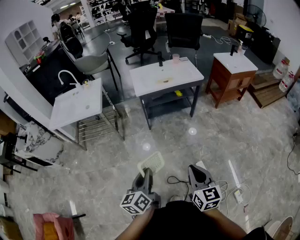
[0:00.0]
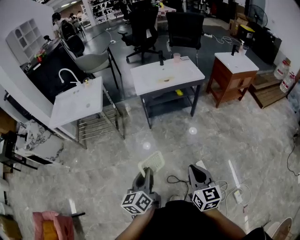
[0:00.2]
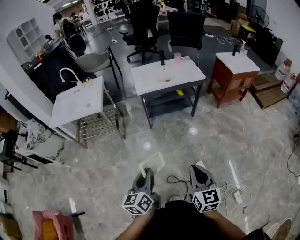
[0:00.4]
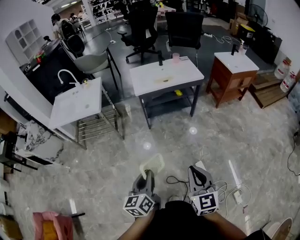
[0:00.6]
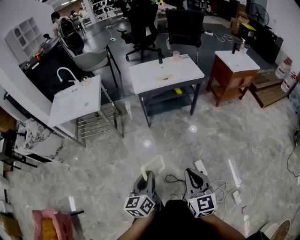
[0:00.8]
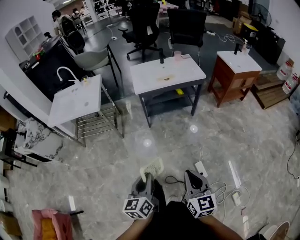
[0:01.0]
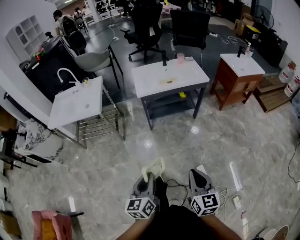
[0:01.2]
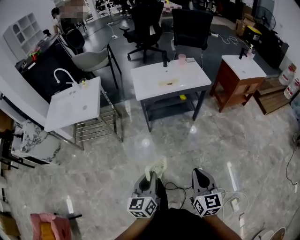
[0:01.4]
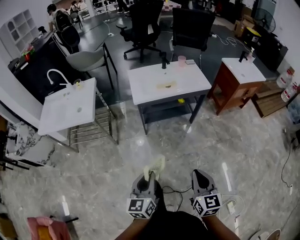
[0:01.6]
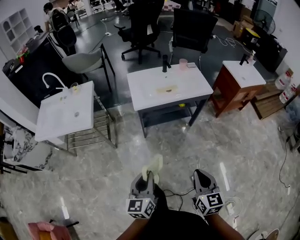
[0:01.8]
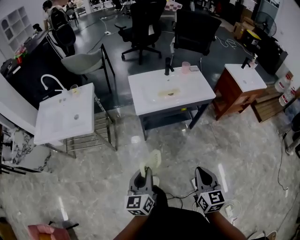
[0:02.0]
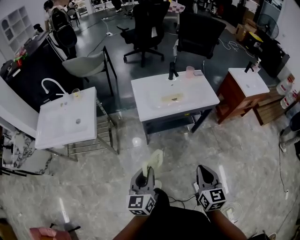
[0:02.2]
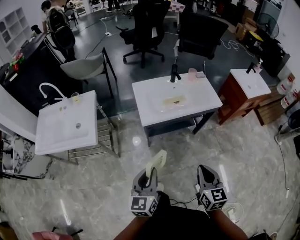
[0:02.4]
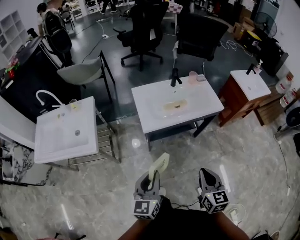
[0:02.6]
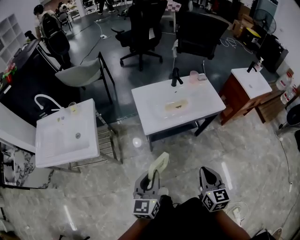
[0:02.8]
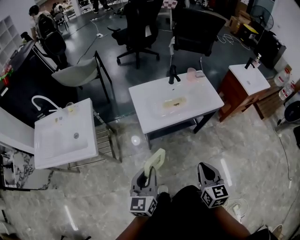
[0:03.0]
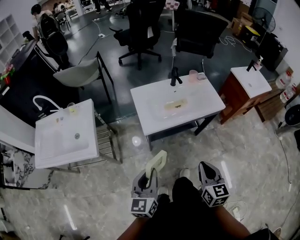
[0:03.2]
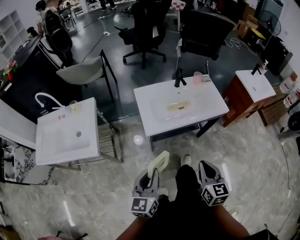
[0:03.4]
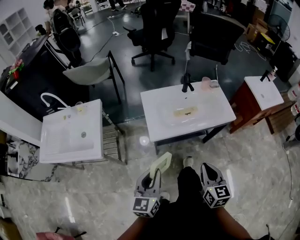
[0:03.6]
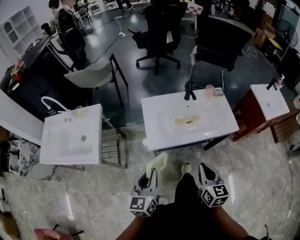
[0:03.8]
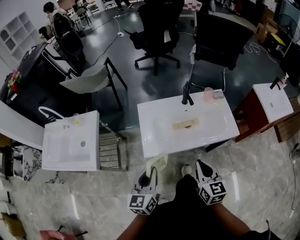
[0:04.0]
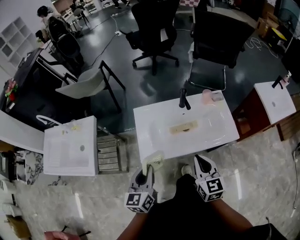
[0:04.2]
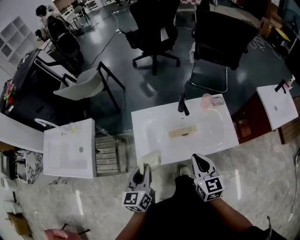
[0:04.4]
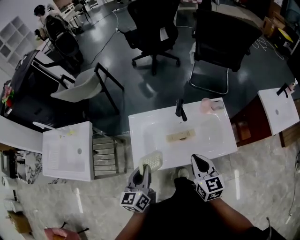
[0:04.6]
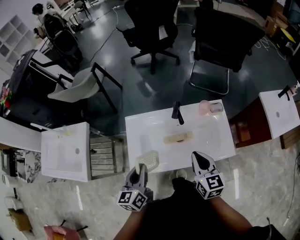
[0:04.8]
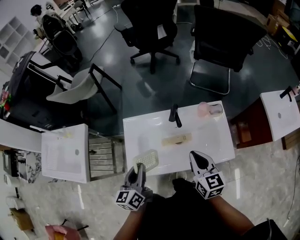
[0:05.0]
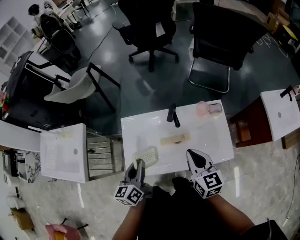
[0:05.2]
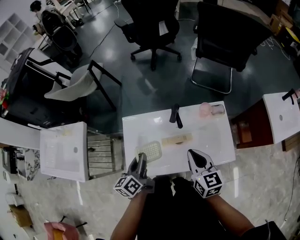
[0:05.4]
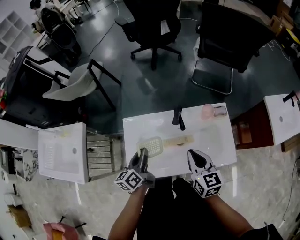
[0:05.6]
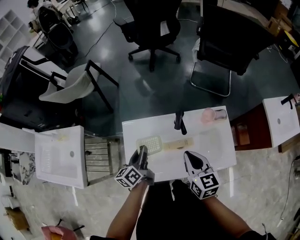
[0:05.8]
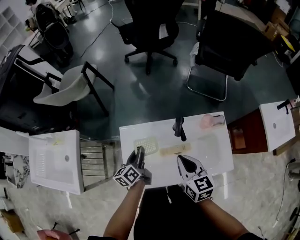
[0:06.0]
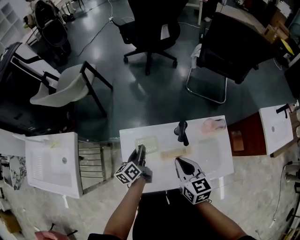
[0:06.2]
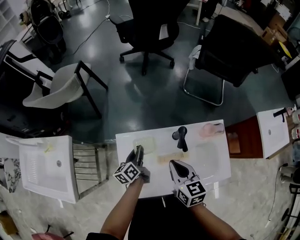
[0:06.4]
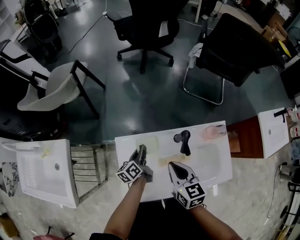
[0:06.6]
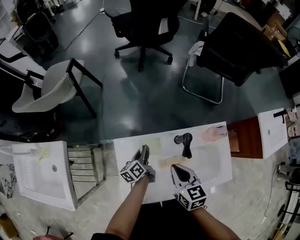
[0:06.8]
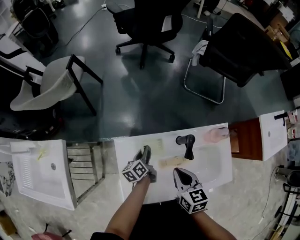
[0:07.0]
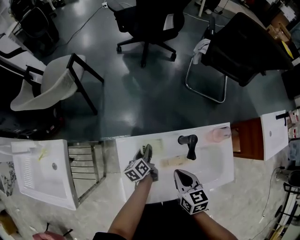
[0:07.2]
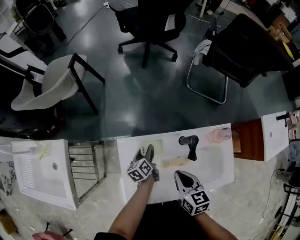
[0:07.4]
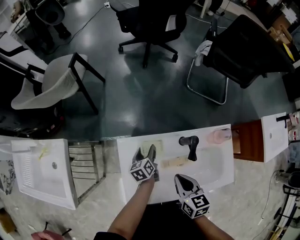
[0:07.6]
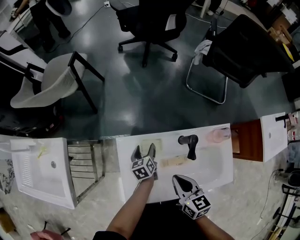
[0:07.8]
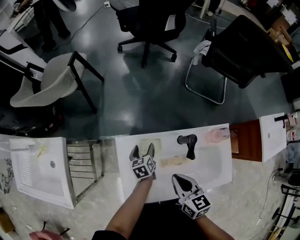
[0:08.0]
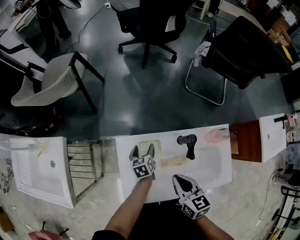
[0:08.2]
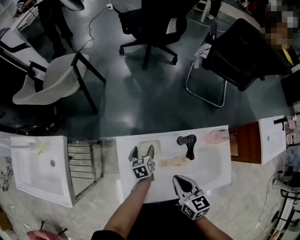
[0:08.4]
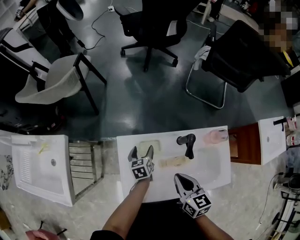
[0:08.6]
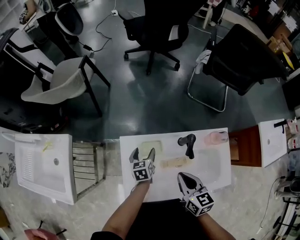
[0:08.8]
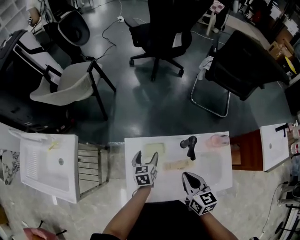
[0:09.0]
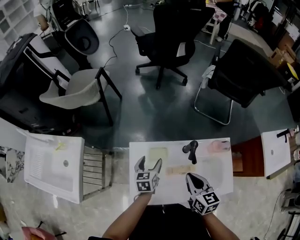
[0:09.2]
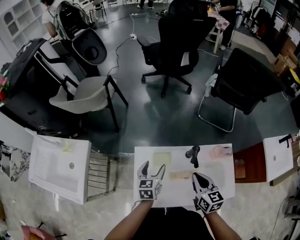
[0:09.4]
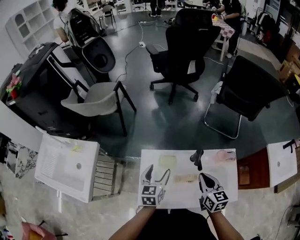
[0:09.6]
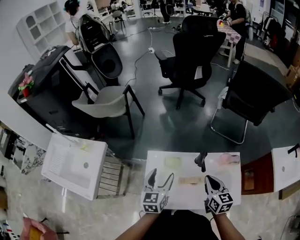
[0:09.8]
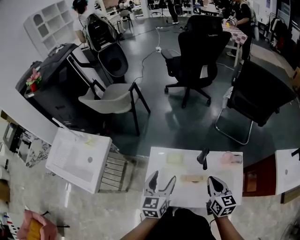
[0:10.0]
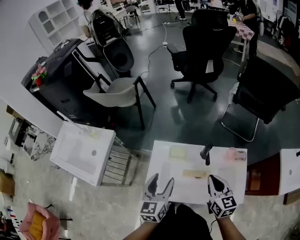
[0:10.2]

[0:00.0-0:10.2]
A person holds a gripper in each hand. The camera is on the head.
0:00.0 to 0:01.4: Both grippers move forward, roughly 10 cm.
0:01.4 to 0:03.0: The two grippers go about 35 cm forward.
0:03.0 to 0:04.4: Both grippers travel together forward, about 30 cm.
0:04.4 to 0:05.8: The right gripper travels forward by some 15 cm. The left gripper travels forward and downward by roughly 25 cm, and swivels about 30 degrees.
0:05.8 to 0:07.2: The left gripper moves downward and forward, roughly 20 cm. Meanwhile the right gripper heads downward, to the left and forward, covering about 15 cm.
0:07.2 to 0:08.8: The left gripper rotates about 30 degrees, and opens up; the right gripper ends up approximately 5 cm from where it was.
0:08.8 to 0:10.2: The right gripper travels upward and to the right by approximately 10 cm, while the left gripper moves upward and backward, approximately 35 cm, and changes its angle by approximately 30 degrees.

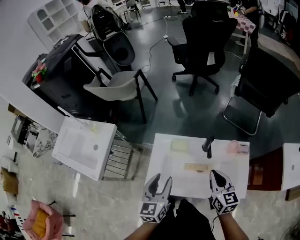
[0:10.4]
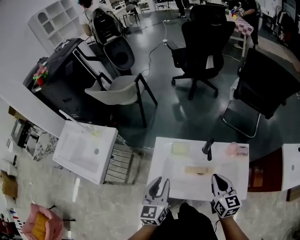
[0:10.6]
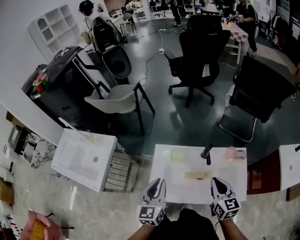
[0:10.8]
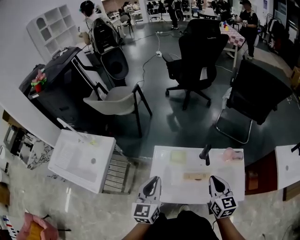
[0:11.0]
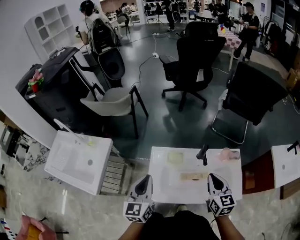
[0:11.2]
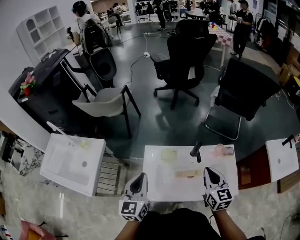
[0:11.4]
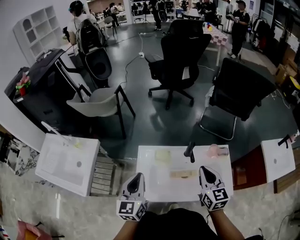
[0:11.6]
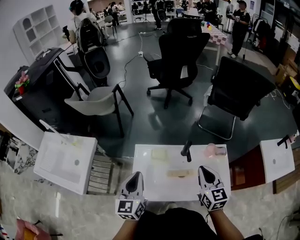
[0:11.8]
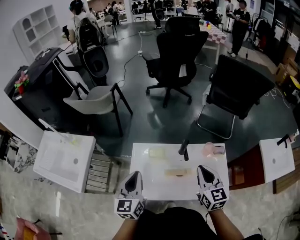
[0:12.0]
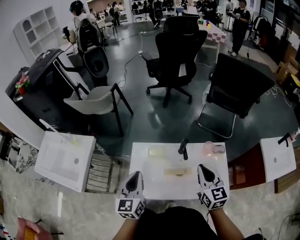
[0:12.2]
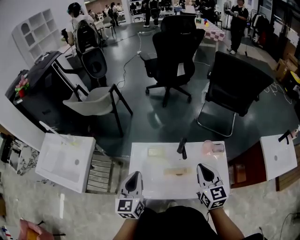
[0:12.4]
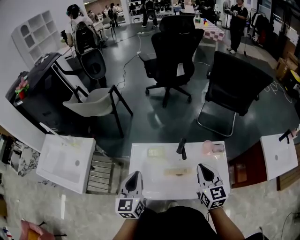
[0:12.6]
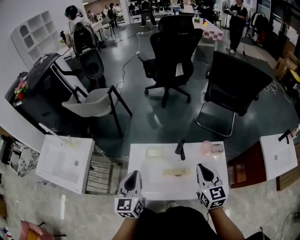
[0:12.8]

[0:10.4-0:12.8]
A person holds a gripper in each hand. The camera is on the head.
0:10.4 to 0:11.6: The left gripper goes about 10 cm to the left and upward, and closes its fingers; the right gripper moves upward, roughly 5 cm.
0:11.6 to 0:12.8: The grippers both shift to the right by about 5 cm.

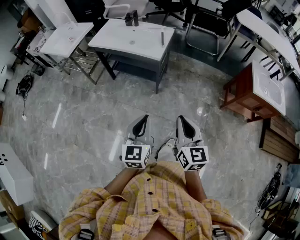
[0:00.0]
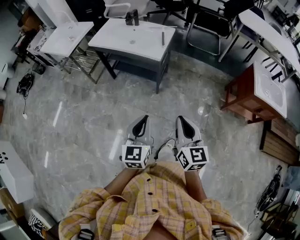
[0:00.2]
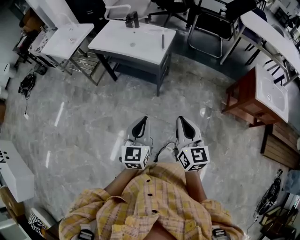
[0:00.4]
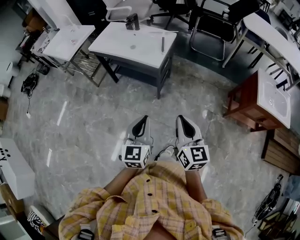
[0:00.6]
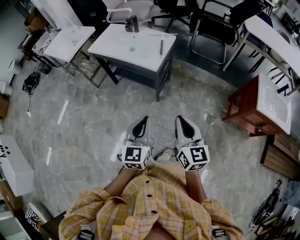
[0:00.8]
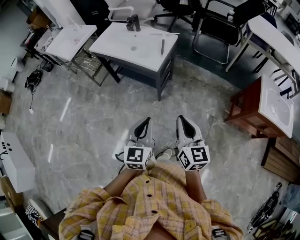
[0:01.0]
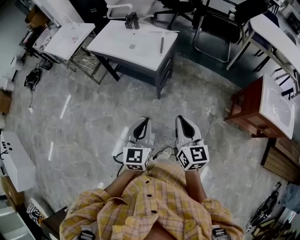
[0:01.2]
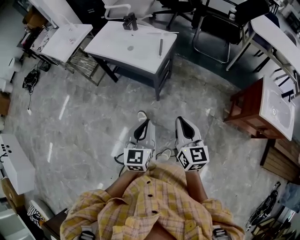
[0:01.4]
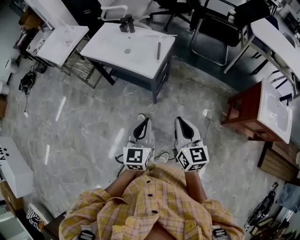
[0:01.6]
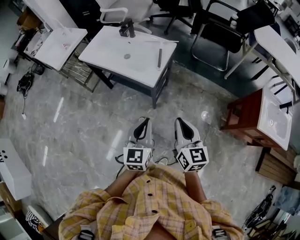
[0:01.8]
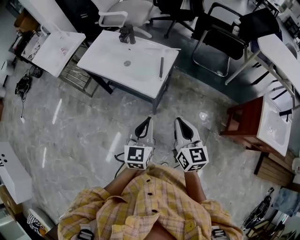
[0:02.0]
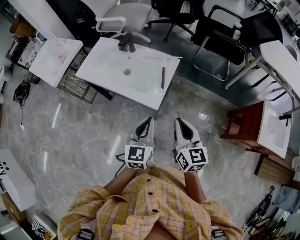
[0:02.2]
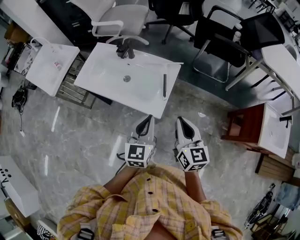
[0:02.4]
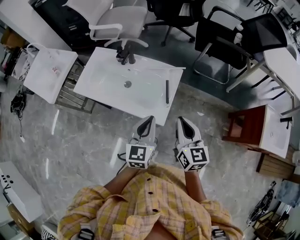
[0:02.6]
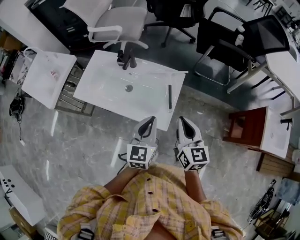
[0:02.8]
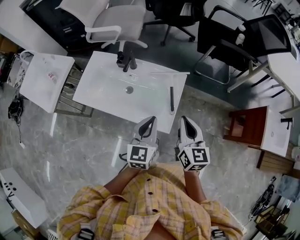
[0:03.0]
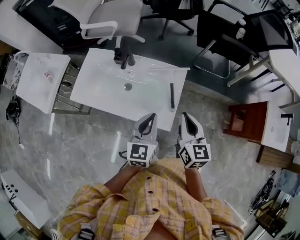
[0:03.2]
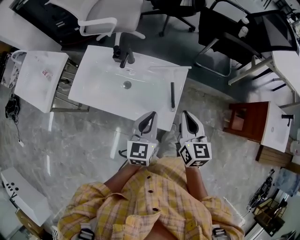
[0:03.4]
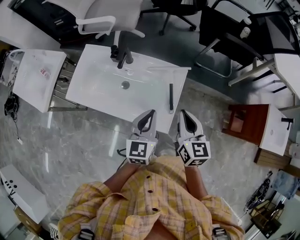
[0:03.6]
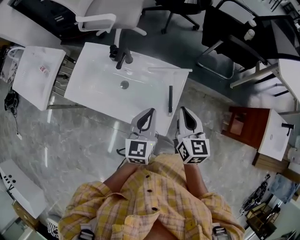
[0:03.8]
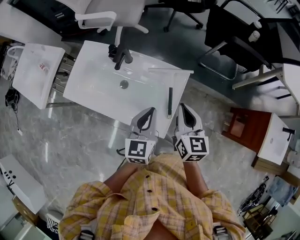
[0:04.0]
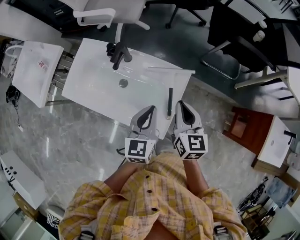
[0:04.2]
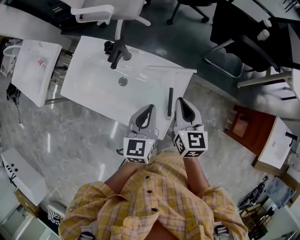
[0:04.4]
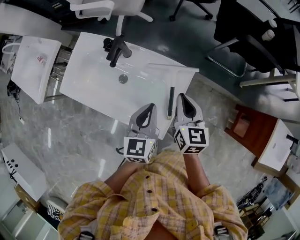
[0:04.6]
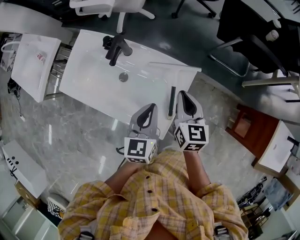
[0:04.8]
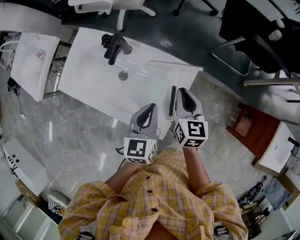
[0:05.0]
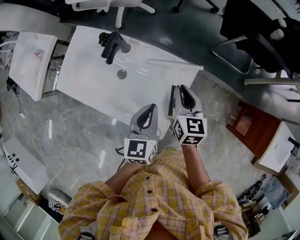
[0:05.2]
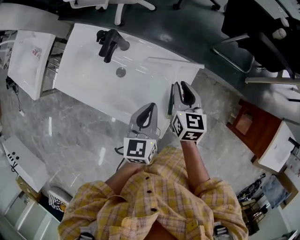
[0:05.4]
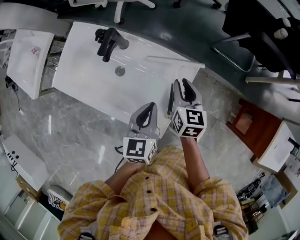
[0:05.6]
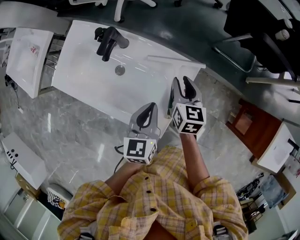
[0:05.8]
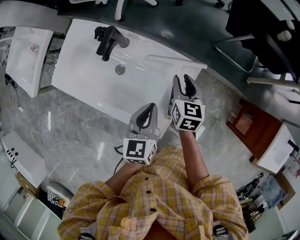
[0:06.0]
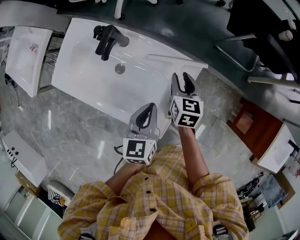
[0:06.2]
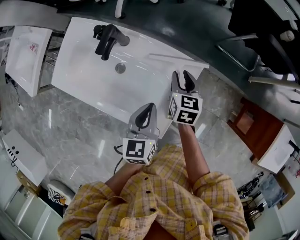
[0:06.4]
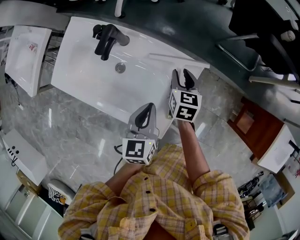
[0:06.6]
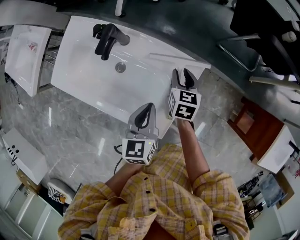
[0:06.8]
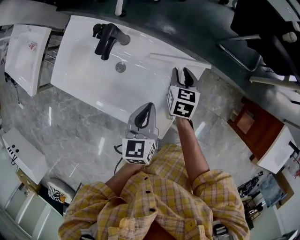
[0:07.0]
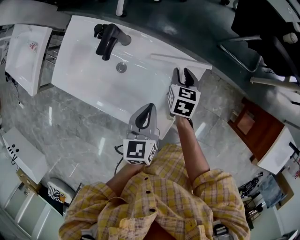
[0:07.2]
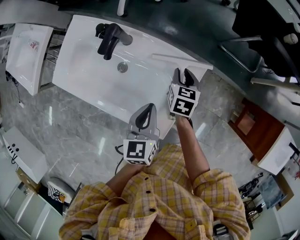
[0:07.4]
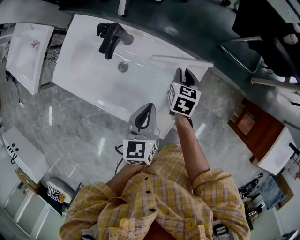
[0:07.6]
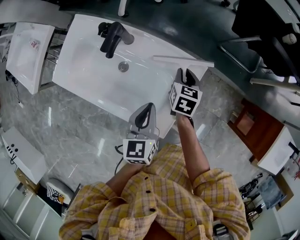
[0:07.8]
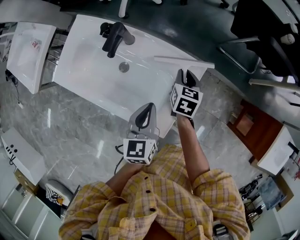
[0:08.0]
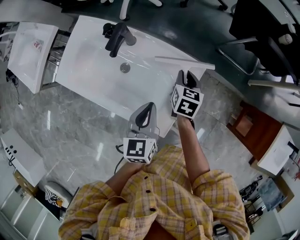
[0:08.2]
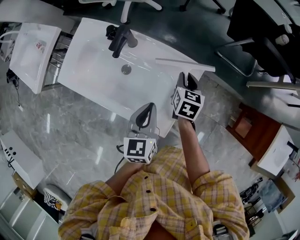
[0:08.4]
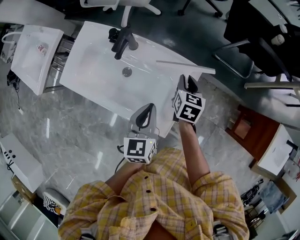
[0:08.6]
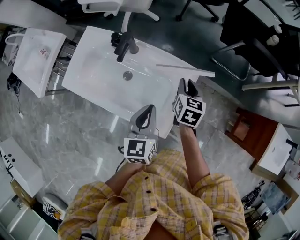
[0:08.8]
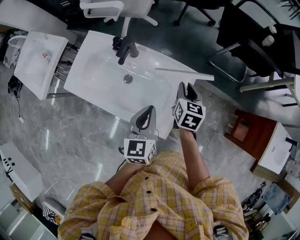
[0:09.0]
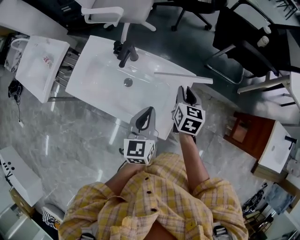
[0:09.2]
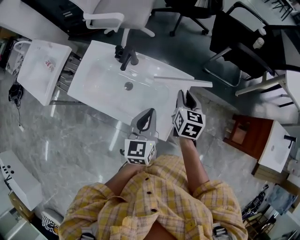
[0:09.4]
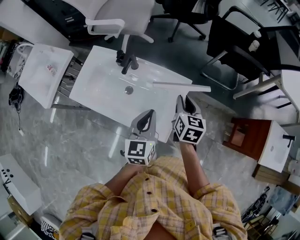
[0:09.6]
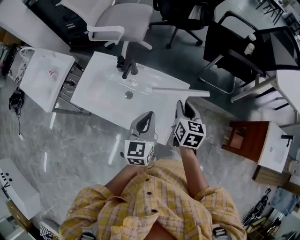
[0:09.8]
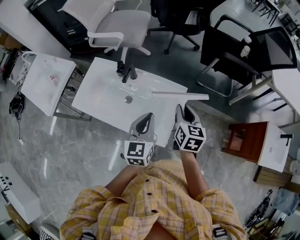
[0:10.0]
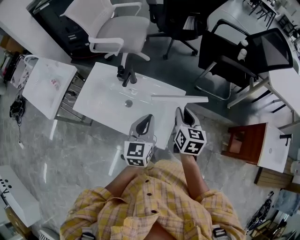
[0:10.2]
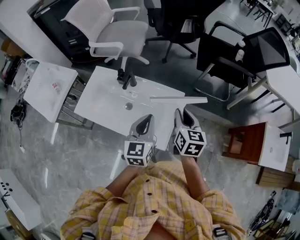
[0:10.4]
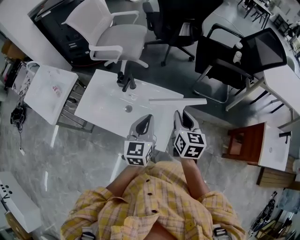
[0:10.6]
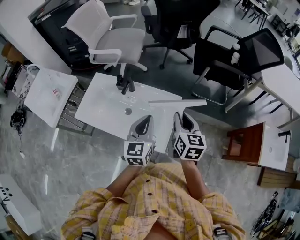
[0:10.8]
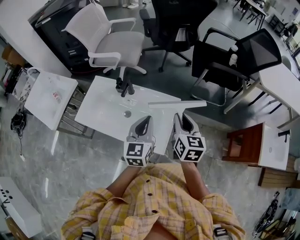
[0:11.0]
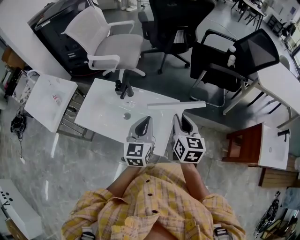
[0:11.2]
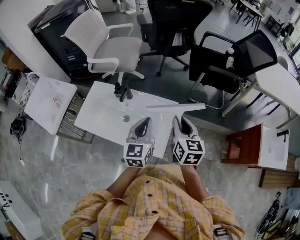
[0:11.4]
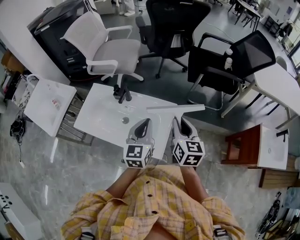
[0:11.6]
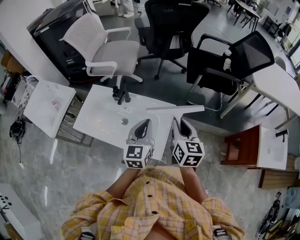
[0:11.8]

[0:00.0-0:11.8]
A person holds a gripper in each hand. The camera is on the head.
0:00.0 to 0:01.4: The grippers both shift forward and to the right by roughly 20 cm.
0:01.4 to 0:03.0: The pair of grippers is taken forward, some 40 cm.
0:03.0 to 0:04.4: The grippers both shift forward and downward by roughly 15 cm.
0:04.4 to 0:06.0: The right gripper heads downward and forward, covering roughly 15 cm, and opens its fingers. Meanwhile the left gripper heads downward, covering approximately 5 cm.
0:06.0 to 0:07.4: The right gripper is displaced downward by approximately 5 cm.
0:07.4 to 0:08.8: The right gripper shifts some 10 cm upward. Meanwhile the left gripper heads upward, covering some 5 cm.
0:08.8 to 0:10.4: The left gripper shifts roughly 10 cm upward. Meanwhile the right gripper moves upward and backward, roughly 20 cm.
0:10.4 to 0:11.8: The right gripper heads upward, covering roughly 5 cm.
